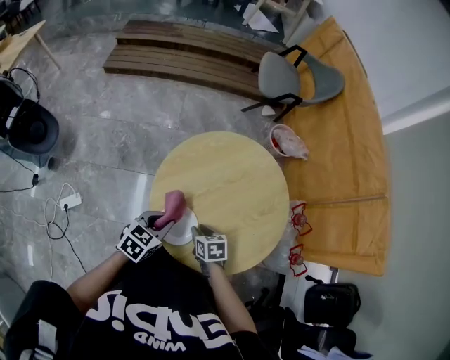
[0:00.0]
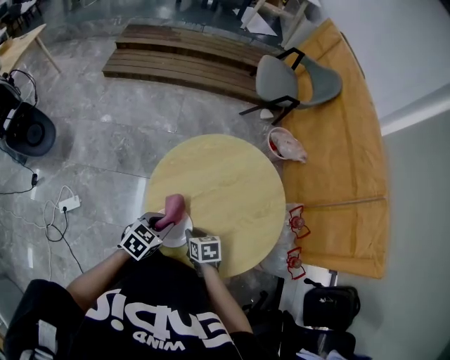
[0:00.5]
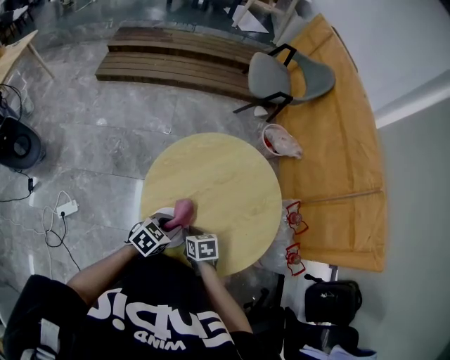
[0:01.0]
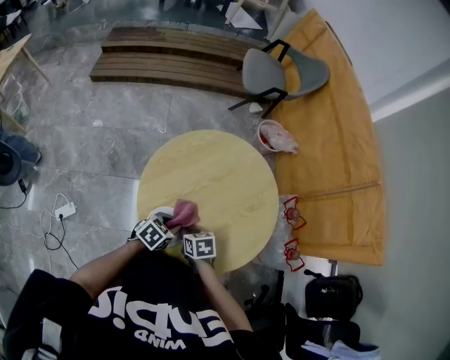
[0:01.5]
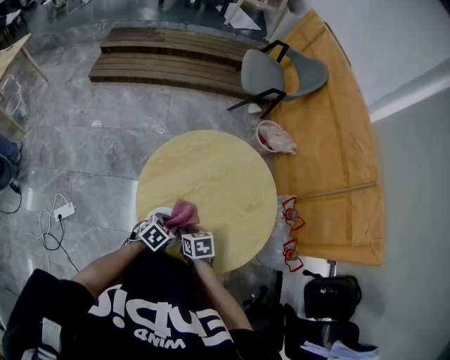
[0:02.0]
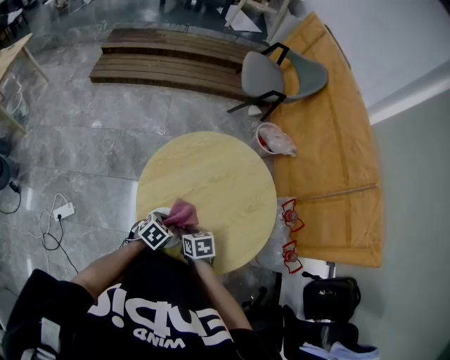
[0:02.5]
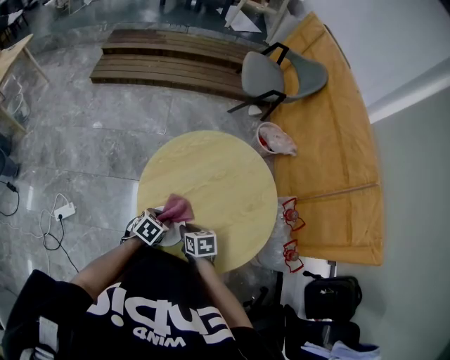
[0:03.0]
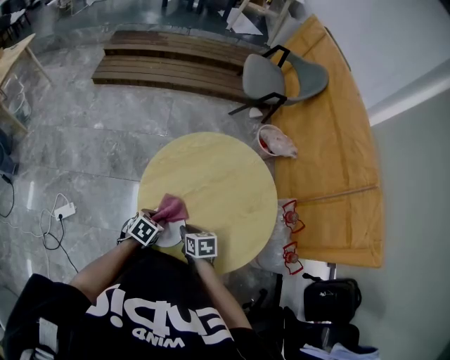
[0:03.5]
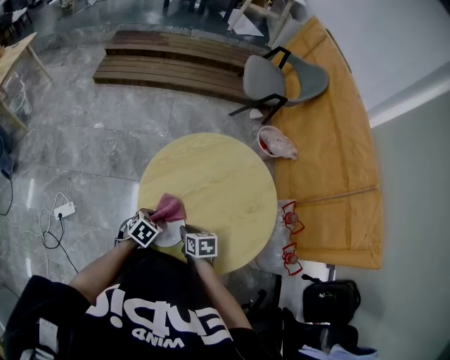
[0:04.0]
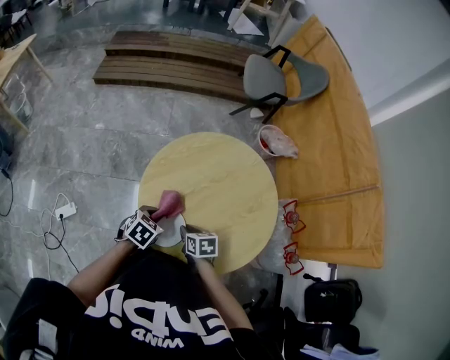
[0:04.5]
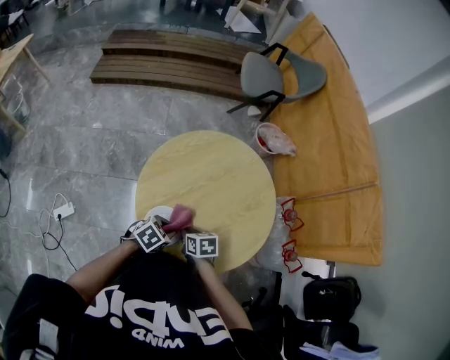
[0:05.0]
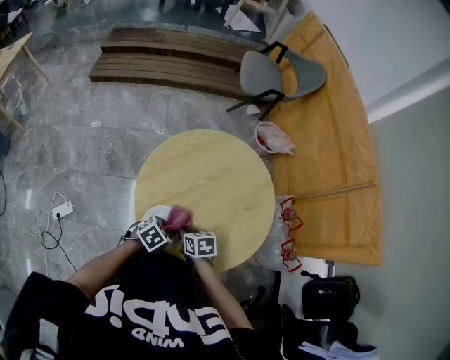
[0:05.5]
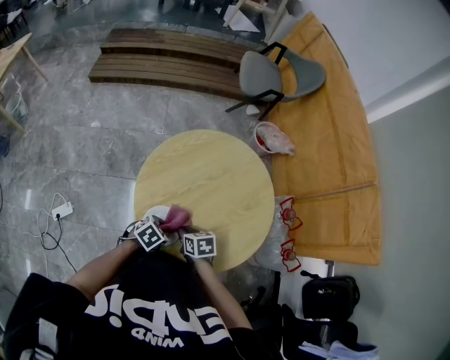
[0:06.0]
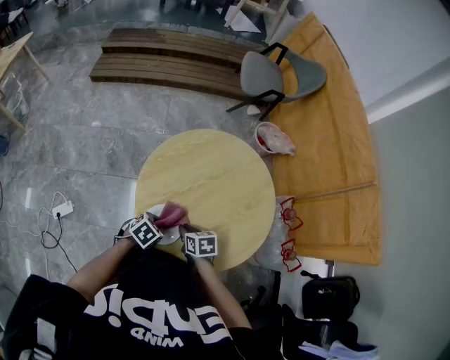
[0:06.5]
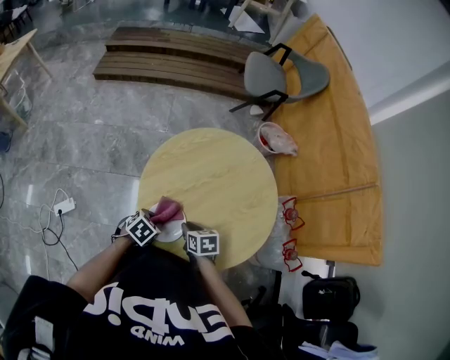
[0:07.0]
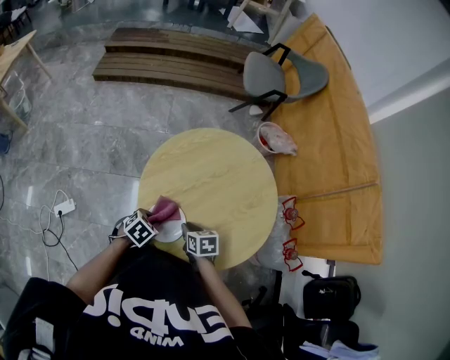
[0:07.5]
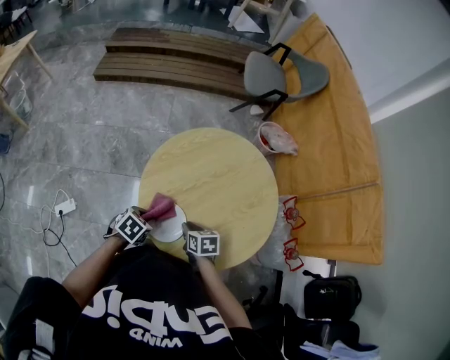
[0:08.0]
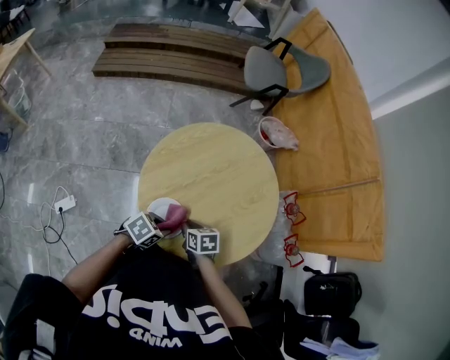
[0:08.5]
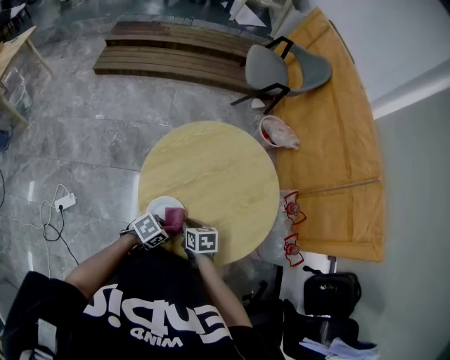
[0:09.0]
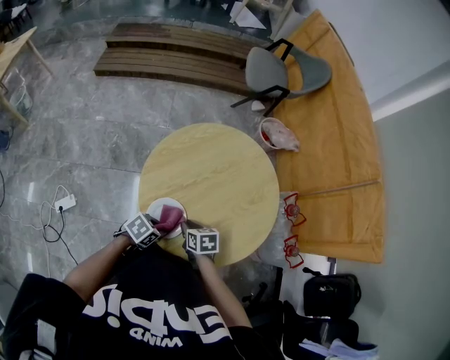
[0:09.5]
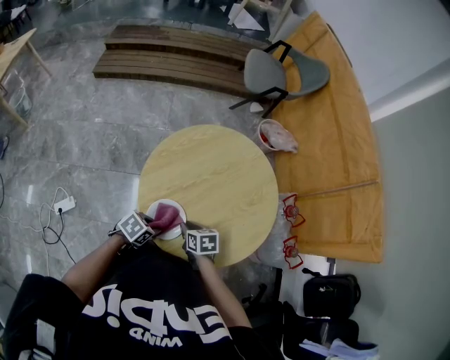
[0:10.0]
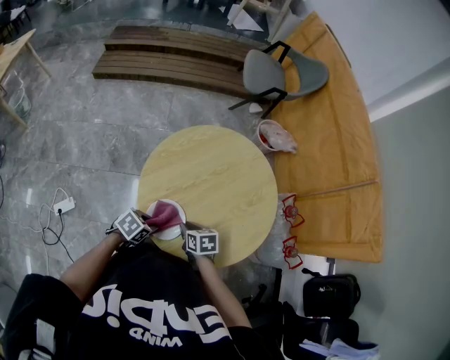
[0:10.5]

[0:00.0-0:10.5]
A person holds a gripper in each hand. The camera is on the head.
0:00.0 to 0:02.0: The left gripper shifts approximately 10 cm downward and to the right.
0:02.0 to 0:04.0: The left gripper shifts approximately 5 cm to the left.
0:06.5 to 0:08.5: The left gripper moves some 5 cm.
0:08.5 to 0:10.5: The left gripper moves roughly 10 cm.

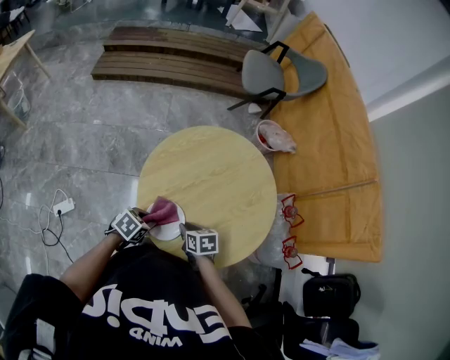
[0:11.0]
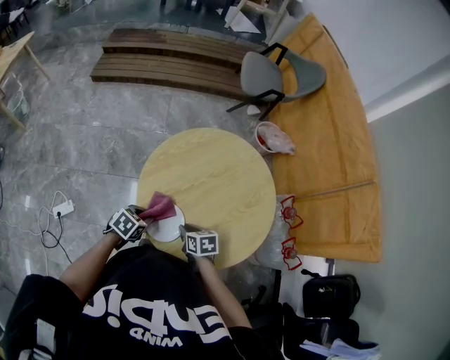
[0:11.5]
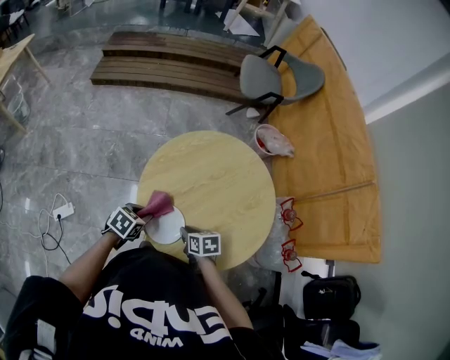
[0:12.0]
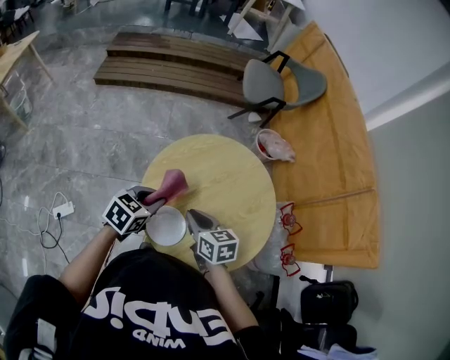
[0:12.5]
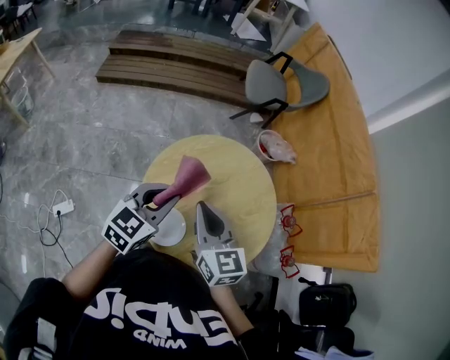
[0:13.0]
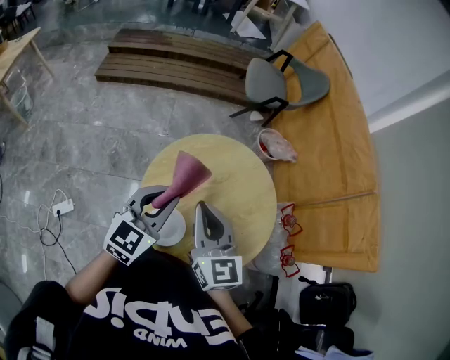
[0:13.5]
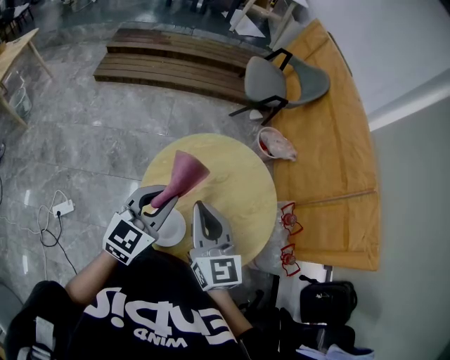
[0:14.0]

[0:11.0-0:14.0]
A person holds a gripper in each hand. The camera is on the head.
0:11.0 to 0:12.5: The grippers both shift upward and forward by about 20 cm. The left gripper turns by approximately 20 degrees. Meanwhile the right gripper swivels roughly 20 degrees.
0:12.5 to 0:14.0: Both grippers move upward, approximately 15 cm. The left gripper turns by some 30 degrees; the right gripper turns by roughly 40 degrees.

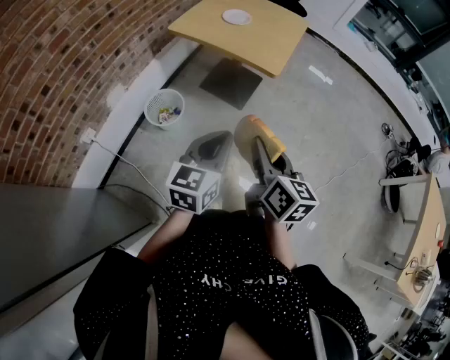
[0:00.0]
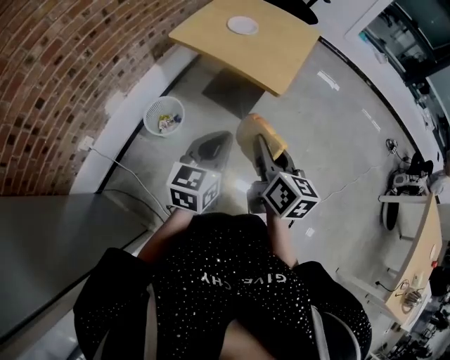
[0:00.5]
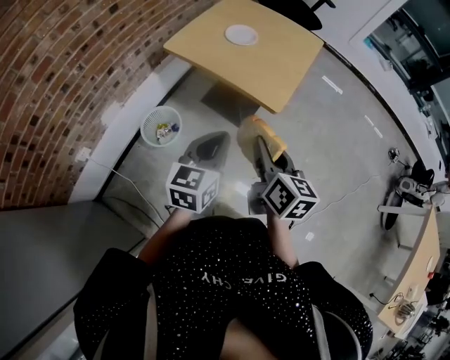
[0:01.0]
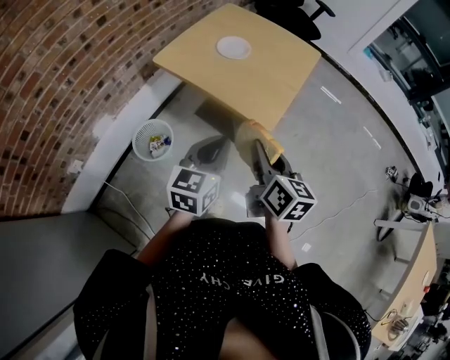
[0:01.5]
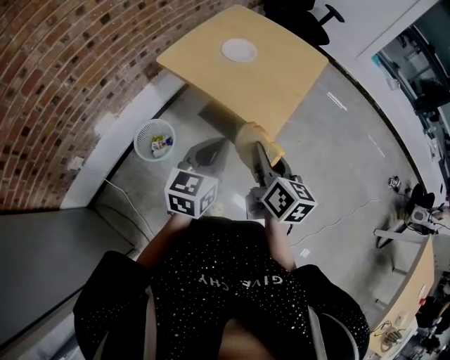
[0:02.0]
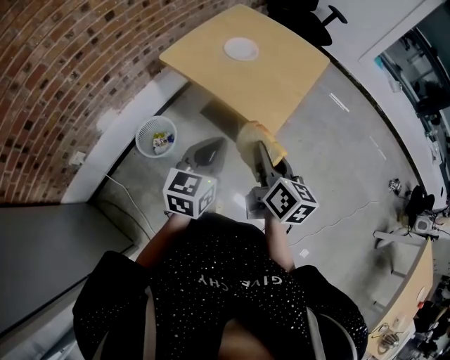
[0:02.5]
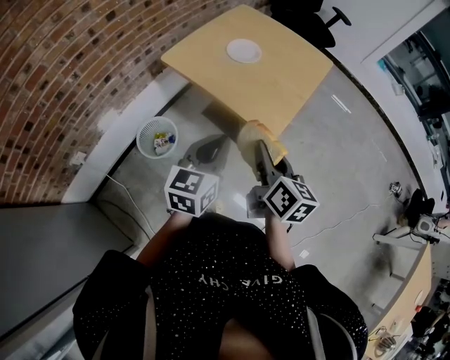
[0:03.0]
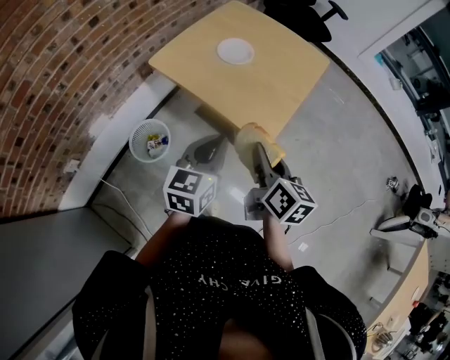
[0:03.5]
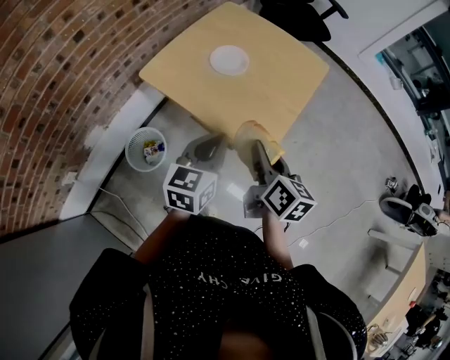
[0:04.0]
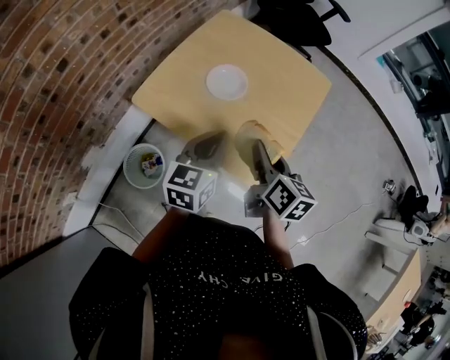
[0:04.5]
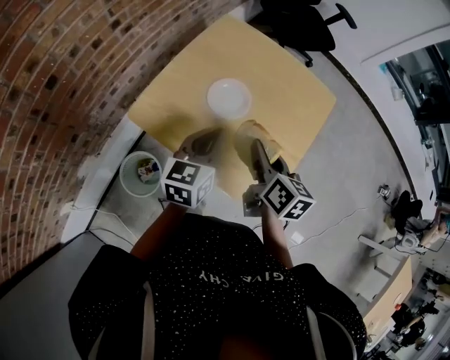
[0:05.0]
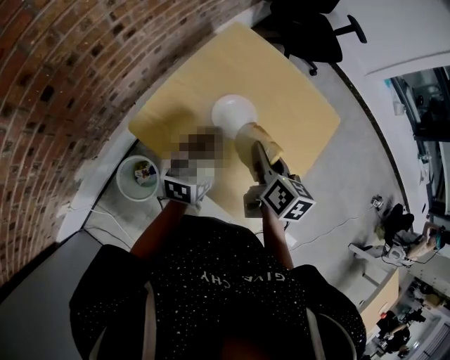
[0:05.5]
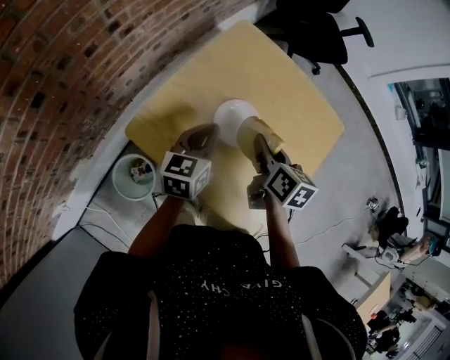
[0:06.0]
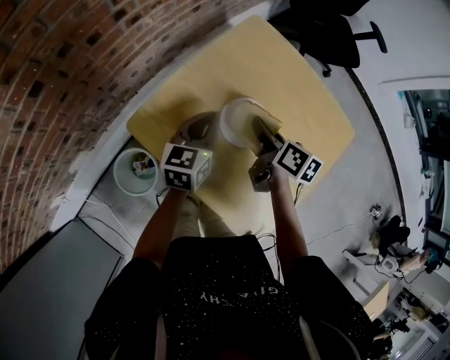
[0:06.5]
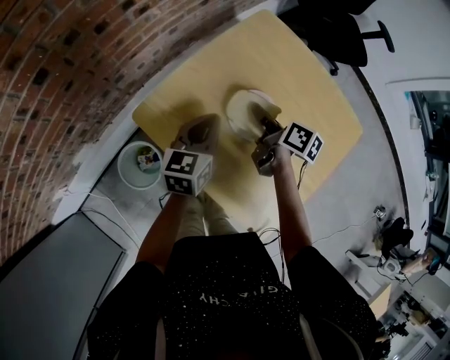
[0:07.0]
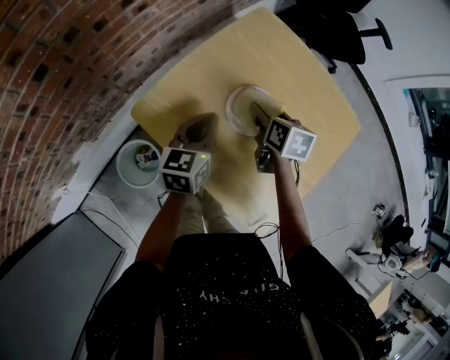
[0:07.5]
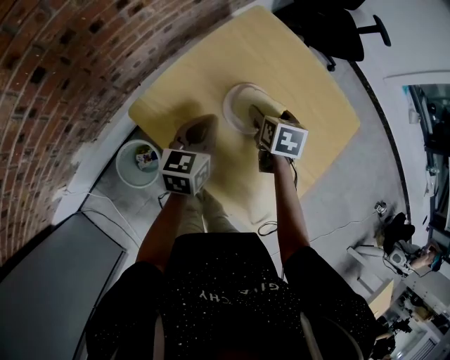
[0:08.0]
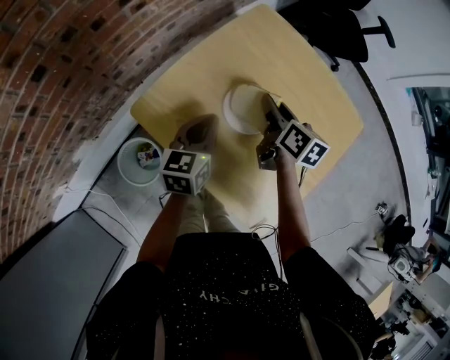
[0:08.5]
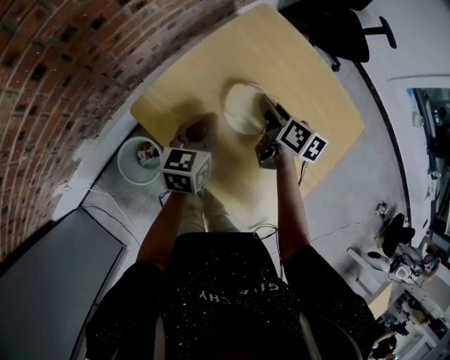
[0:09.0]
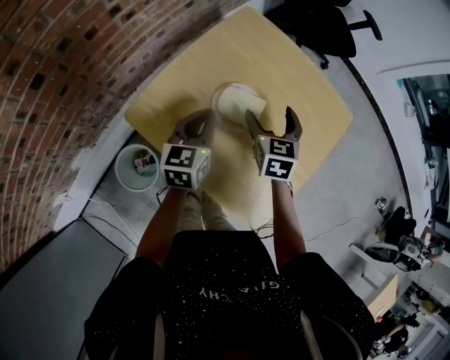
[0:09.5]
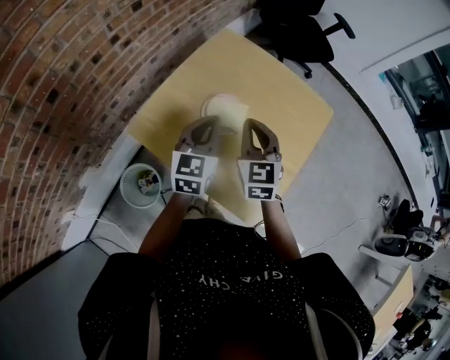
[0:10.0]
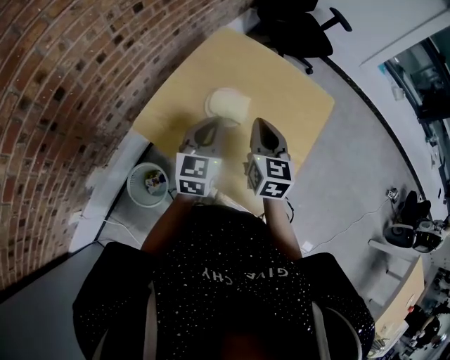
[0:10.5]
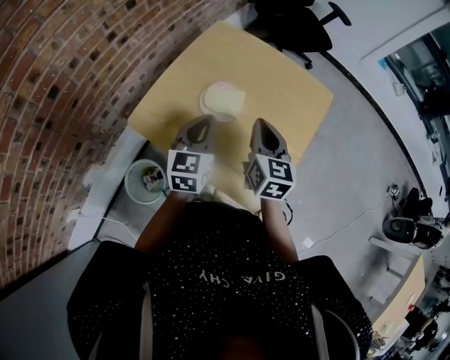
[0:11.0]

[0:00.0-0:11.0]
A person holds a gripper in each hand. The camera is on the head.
0:00.0 to 0:02.0: The grippers both shift forward by approximately 30 cm.
0:02.0 to 0:03.5: The right gripper changes place by some 5 cm, while the left gripper goes some 5 cm forward.
0:03.5 to 0:05.5: Both grippers move forward, about 35 cm.
0:05.5 to 0:07.5: The right gripper shifts about 15 cm forward and downward, and changes its angle by roughly 20 degrees. The left gripper moves downward, about 5 cm.
0:07.5 to 0:09.0: The right gripper swivels about 20 degrees.
0:09.0 to 0:11.0: The left gripper shifts approximately 15 cm upward, to the right and backward, while the right gripper shifts about 20 cm backward, upward and to the right, rotates about 40 degrees, and opens, then closes once more.

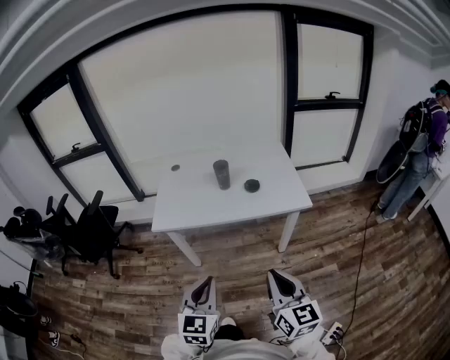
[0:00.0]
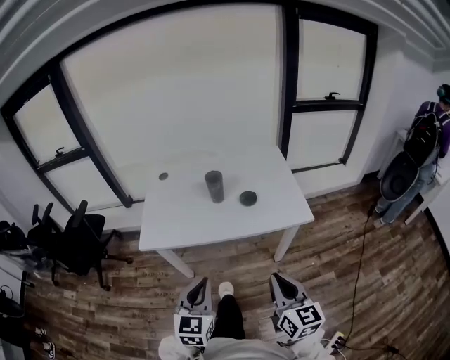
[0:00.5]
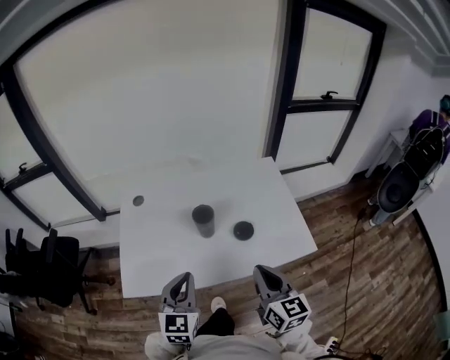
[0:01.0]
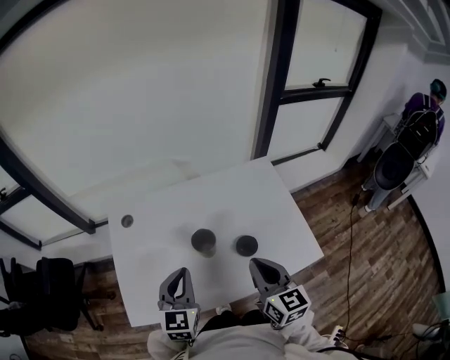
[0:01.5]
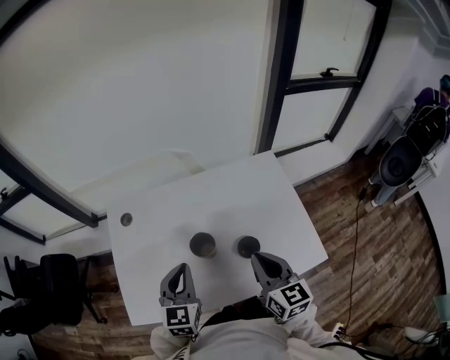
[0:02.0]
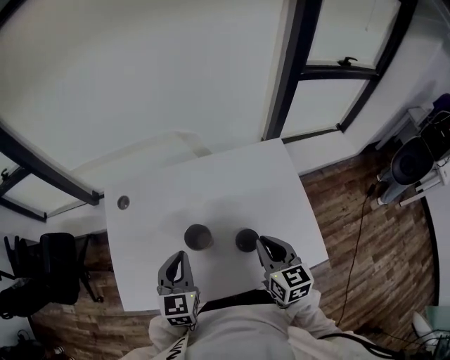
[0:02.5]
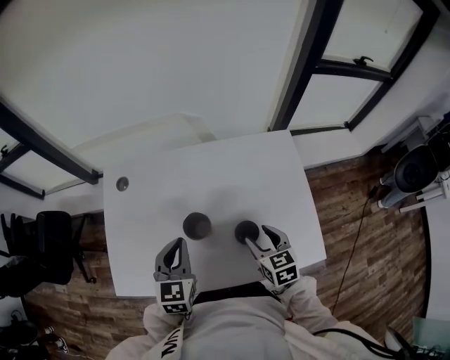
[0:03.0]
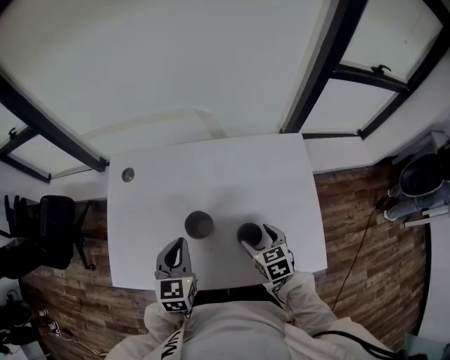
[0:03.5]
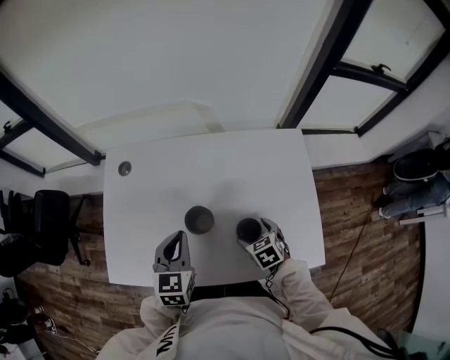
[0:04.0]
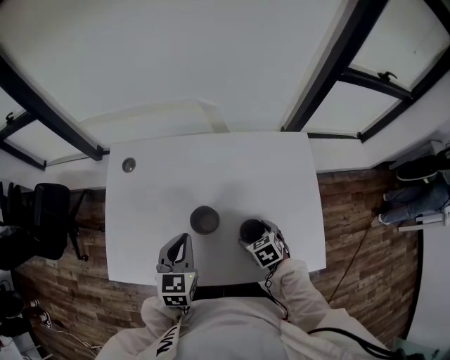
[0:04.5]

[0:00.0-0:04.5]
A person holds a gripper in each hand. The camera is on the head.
0:00.0 to 0:02.0: The pair of grippers is taken forward, some 60 cm.
0:02.0 to 0:04.5: The left gripper goes some 10 cm downward, while the right gripper is displaced downward by roughly 25 cm, tilts its fingers some 50 degrees downward, and opens up.
